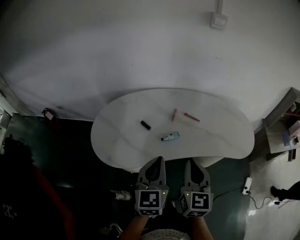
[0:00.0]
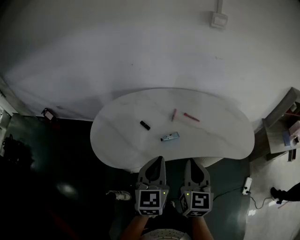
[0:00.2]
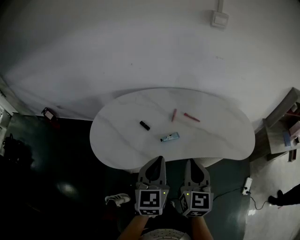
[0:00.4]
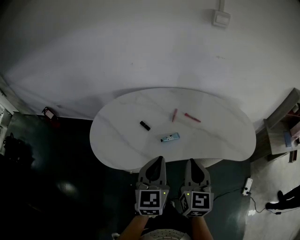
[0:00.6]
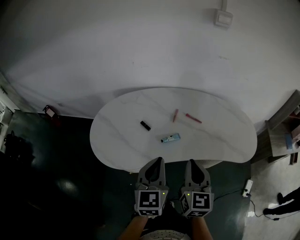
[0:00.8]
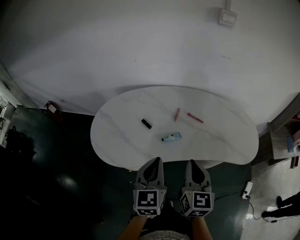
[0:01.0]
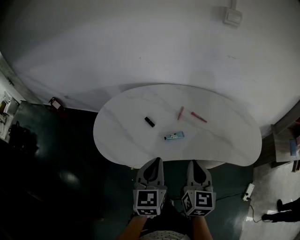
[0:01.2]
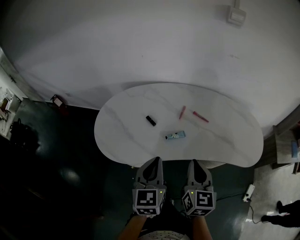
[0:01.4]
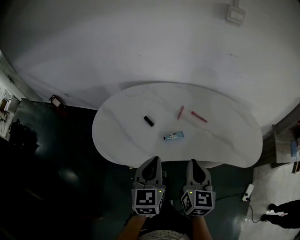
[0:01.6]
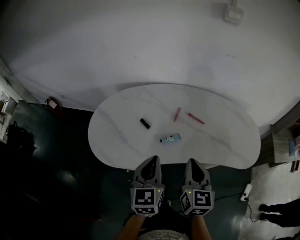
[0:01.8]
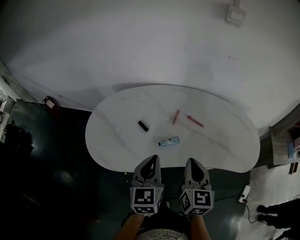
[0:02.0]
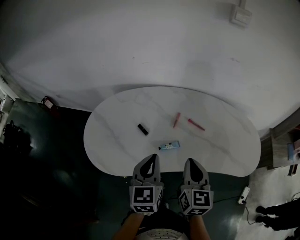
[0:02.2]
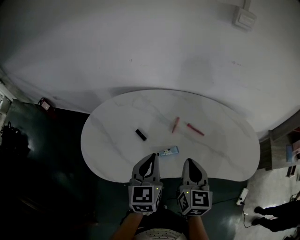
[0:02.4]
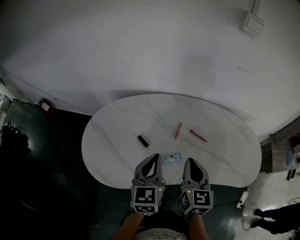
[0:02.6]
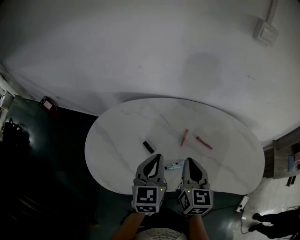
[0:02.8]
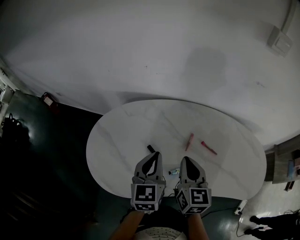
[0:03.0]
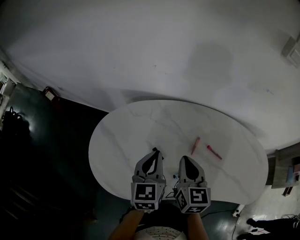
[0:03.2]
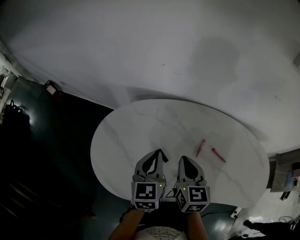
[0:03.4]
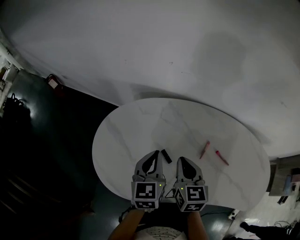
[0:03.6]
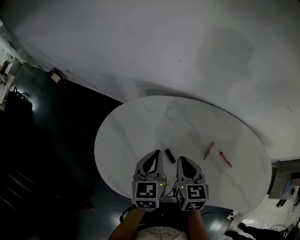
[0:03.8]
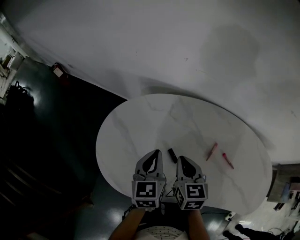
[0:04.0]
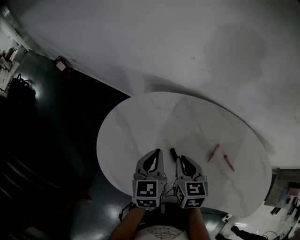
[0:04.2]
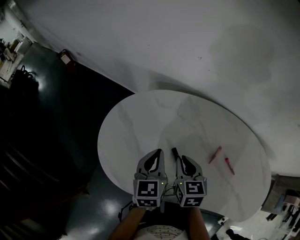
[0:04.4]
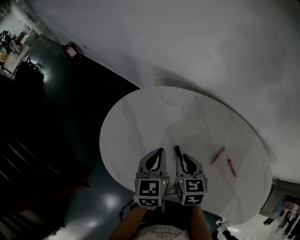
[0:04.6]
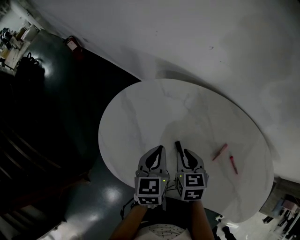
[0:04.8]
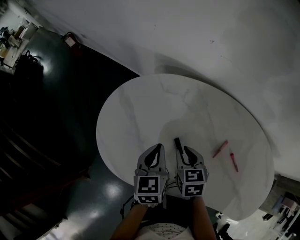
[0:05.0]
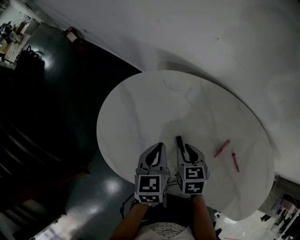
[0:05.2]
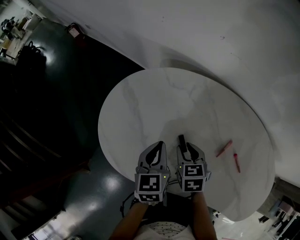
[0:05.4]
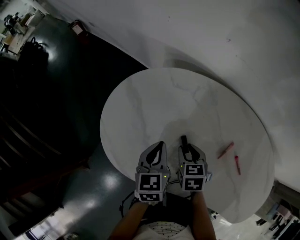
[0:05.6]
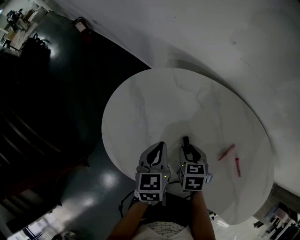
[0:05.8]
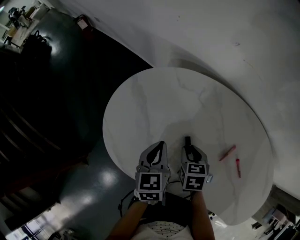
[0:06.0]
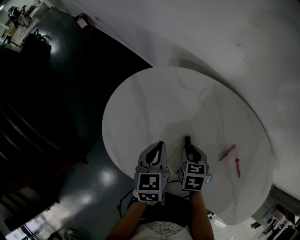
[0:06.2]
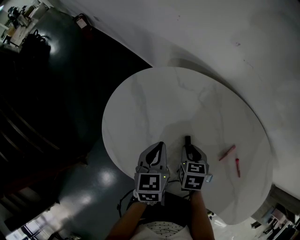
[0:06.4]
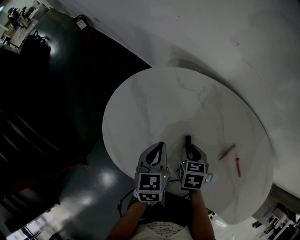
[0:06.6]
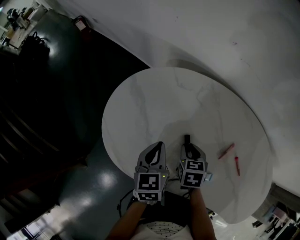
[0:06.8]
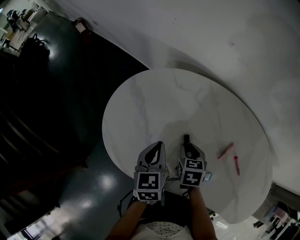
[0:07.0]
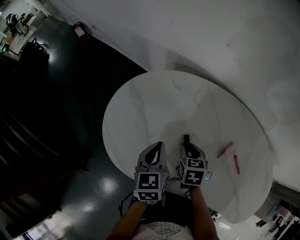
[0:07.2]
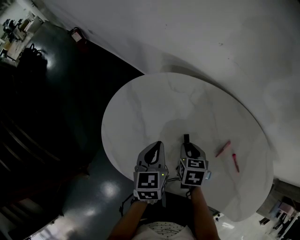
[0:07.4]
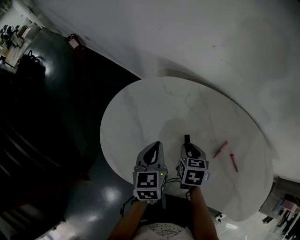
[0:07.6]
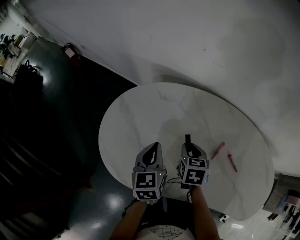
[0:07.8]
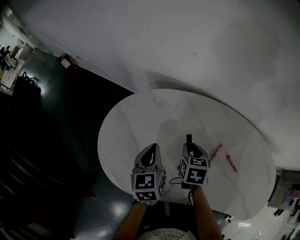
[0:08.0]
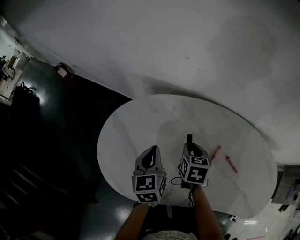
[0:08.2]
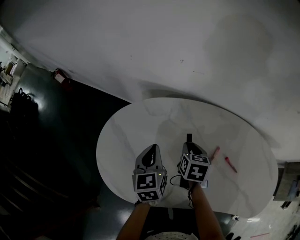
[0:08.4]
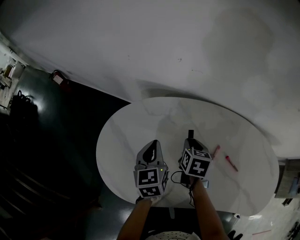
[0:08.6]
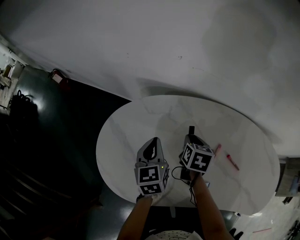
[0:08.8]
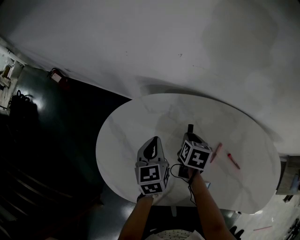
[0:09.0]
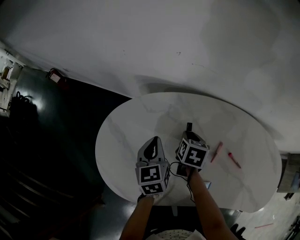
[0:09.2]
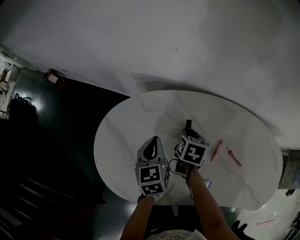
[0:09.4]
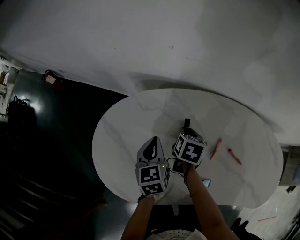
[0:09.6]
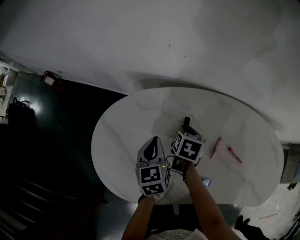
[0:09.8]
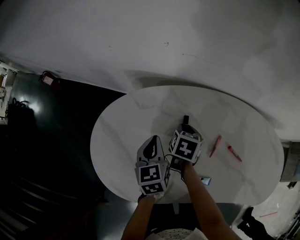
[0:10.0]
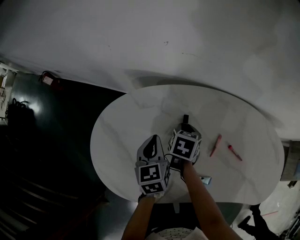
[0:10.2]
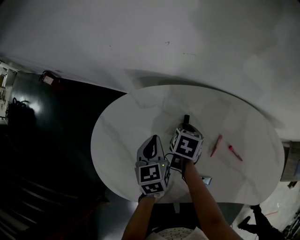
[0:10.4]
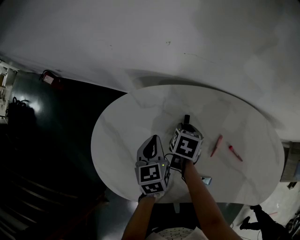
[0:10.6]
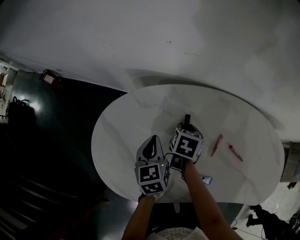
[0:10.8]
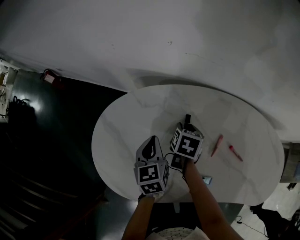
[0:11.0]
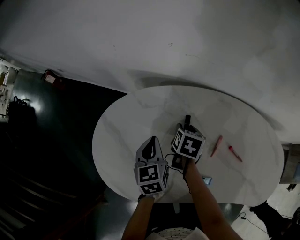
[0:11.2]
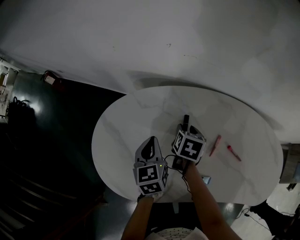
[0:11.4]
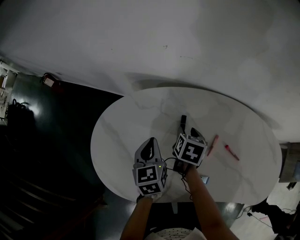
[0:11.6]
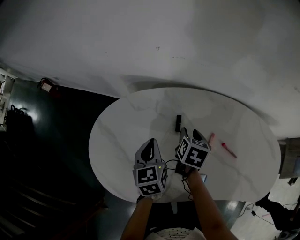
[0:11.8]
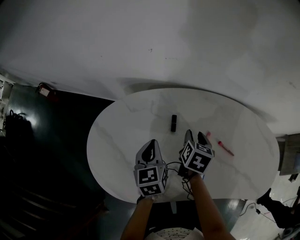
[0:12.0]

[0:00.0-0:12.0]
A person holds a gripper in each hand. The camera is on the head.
0:00.0 to 0:01.6: The right gripper ends up about 5 cm from where it was, while the left gripper moves roughly 5 cm.
0:01.6 to 0:03.0: The right gripper shifts about 25 cm forward and to the left. The left gripper moves forward, some 20 cm.
0:03.0 to 0:04.4: Both grippers travel together to the left, downward and forward, approximately 15 cm. The left gripper rotates some 20 degrees. Meanwhile the right gripper changes its angle by roughly 30 degrees.
0:04.4 to 0:06.0: The left gripper is displaced downward by approximately 5 cm; the right gripper travels downward by approximately 10 cm, and changes its angle by some 20 degrees.
0:06.0 to 0:07.6: The grippers make only small movements.
0:07.6 to 0:09.0: The right gripper goes some 10 cm forward and to the right, and turns by approximately 20 degrees. Meanwhile the left gripper travels forward by approximately 10 cm.
0:09.0 to 0:10.4: The grippers make only small movements.
0:10.4 to 0:12.0: The right gripper moves to the right and upward, roughly 10 cm.

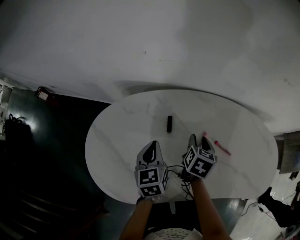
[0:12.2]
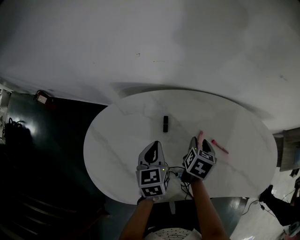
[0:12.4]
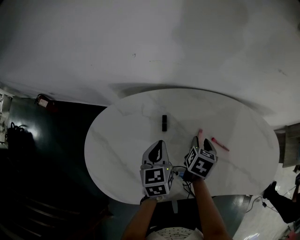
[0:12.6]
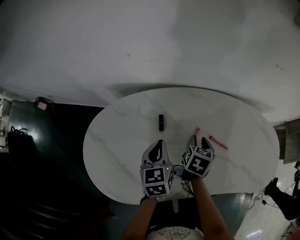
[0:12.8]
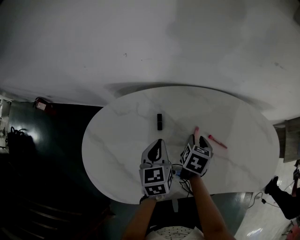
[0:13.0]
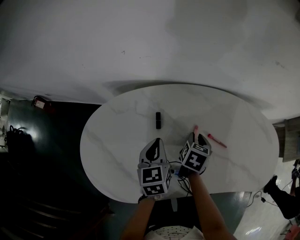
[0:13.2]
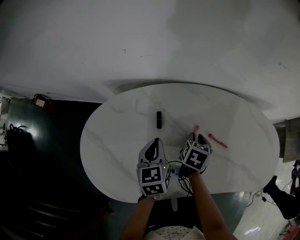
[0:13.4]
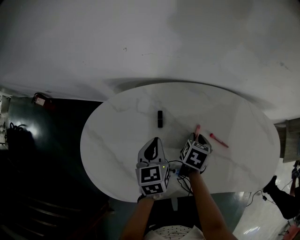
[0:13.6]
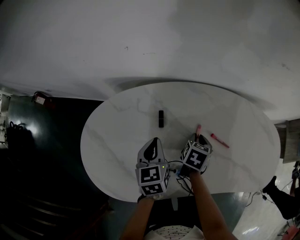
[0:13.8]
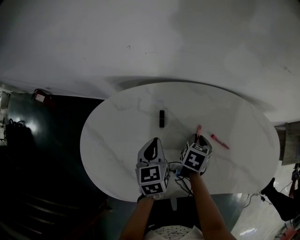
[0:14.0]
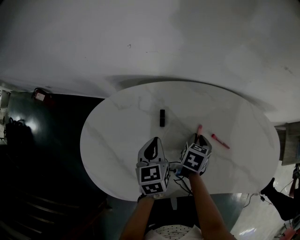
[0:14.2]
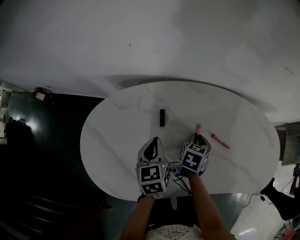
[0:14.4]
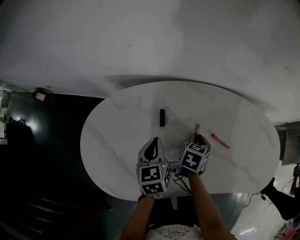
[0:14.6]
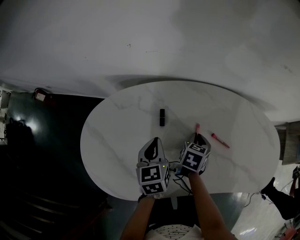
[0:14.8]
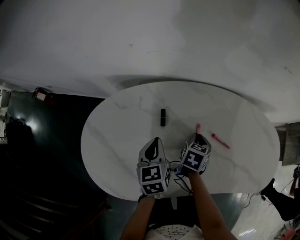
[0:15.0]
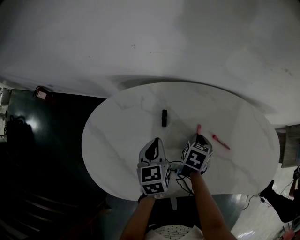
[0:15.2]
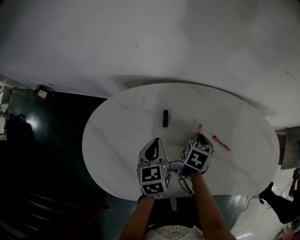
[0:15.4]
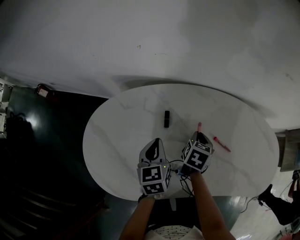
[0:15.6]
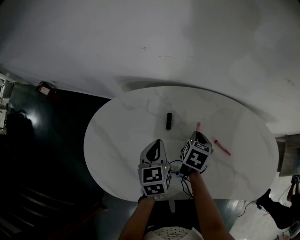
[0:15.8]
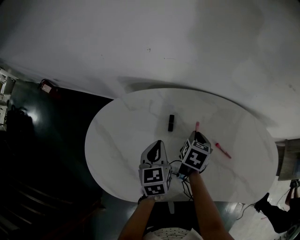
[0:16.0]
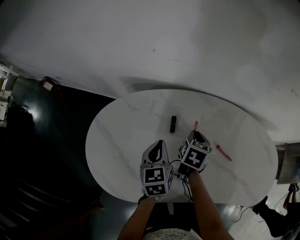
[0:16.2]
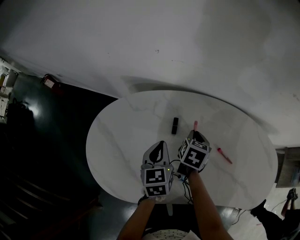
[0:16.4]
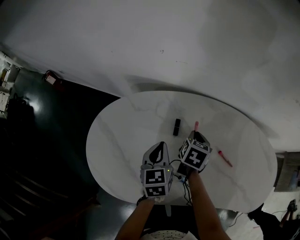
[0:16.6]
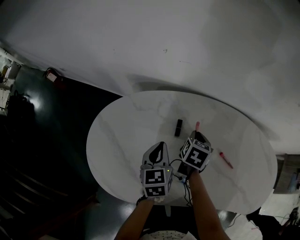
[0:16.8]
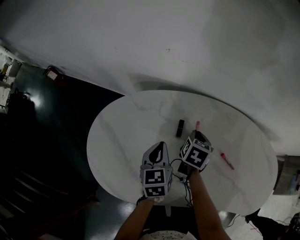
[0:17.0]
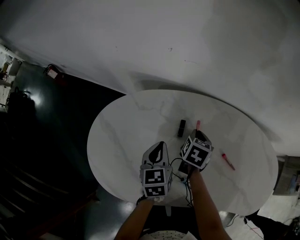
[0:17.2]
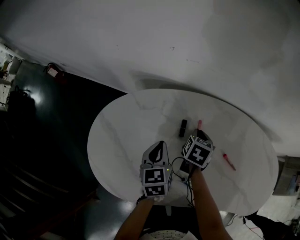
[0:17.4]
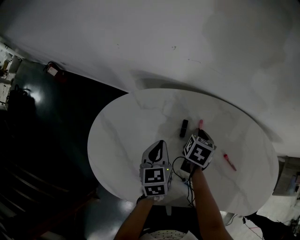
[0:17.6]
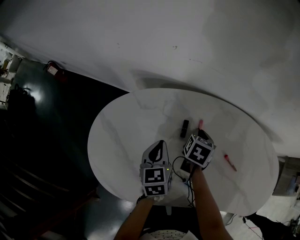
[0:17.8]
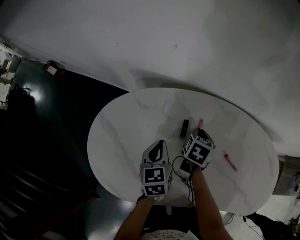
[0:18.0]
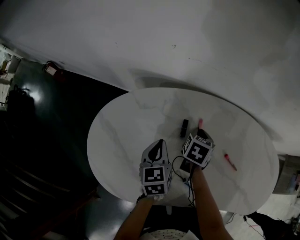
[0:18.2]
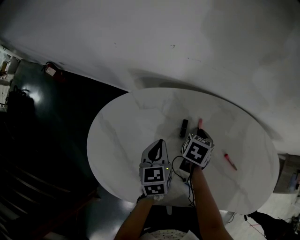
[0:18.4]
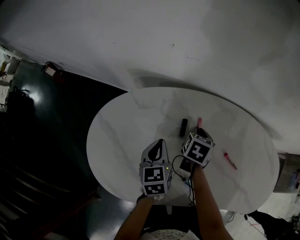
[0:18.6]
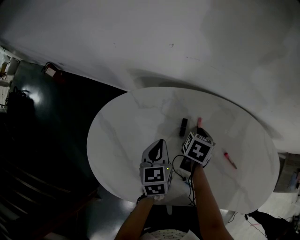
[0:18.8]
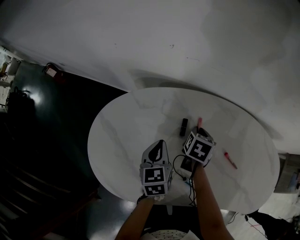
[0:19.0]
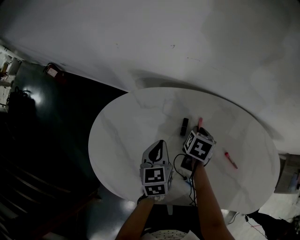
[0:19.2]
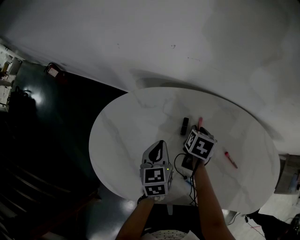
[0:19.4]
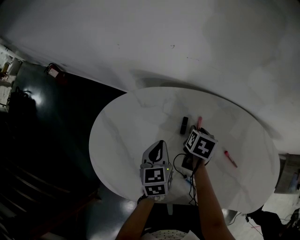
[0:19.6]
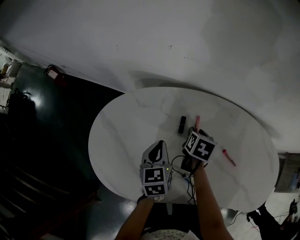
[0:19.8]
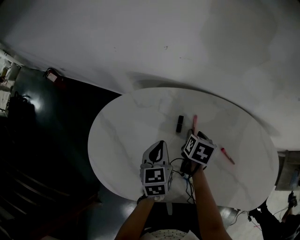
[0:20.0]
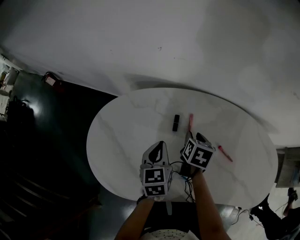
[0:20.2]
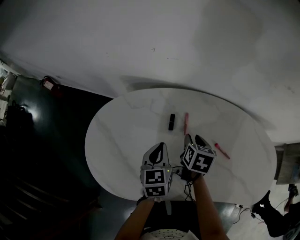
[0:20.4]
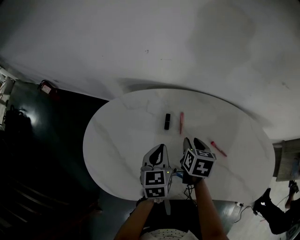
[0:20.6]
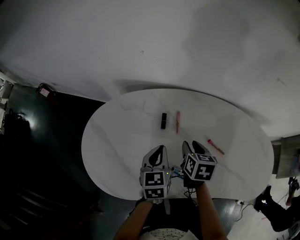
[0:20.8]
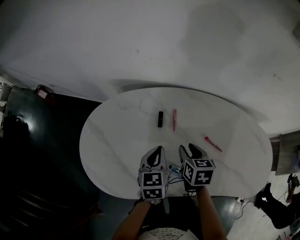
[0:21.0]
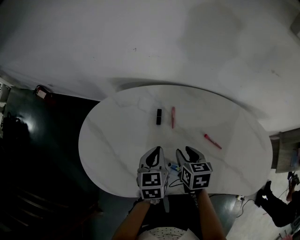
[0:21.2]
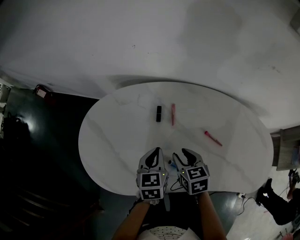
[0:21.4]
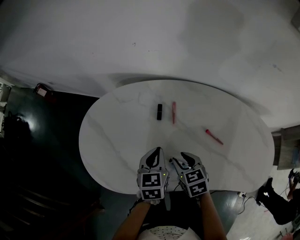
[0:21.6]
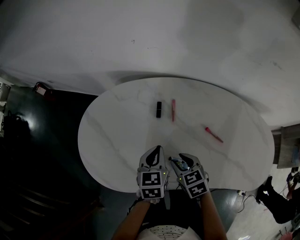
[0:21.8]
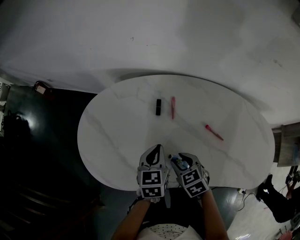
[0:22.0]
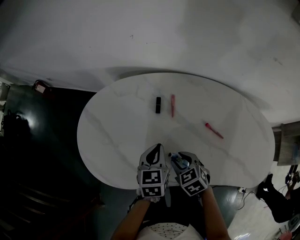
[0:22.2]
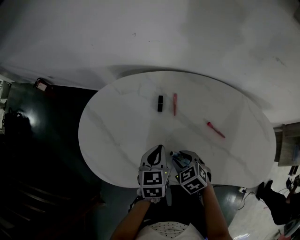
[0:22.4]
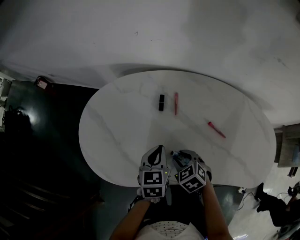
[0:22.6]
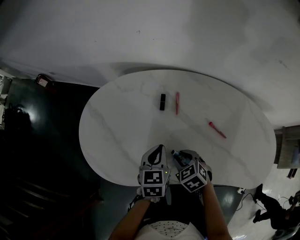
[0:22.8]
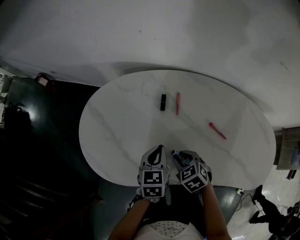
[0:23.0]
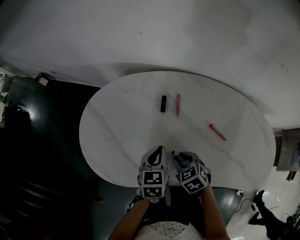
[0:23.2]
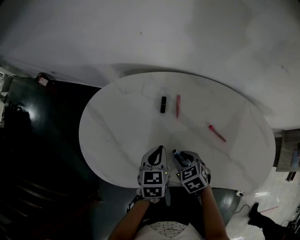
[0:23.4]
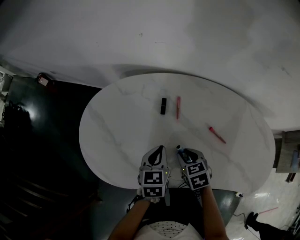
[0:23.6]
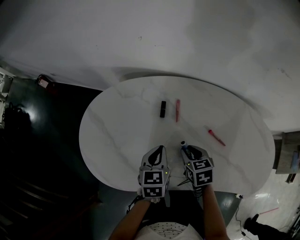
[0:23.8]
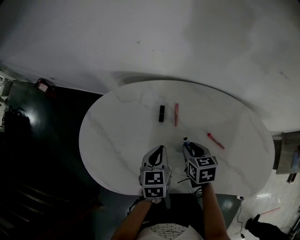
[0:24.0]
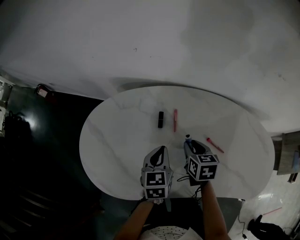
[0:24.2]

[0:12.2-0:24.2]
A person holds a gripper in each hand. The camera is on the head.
0:12.2 to 0:13.8: The right gripper is displaced downward by about 5 cm, and closes.
0:13.8 to 0:15.2: The grippers move only a little.
0:15.2 to 0:16.6: The right gripper moves to the left and forward, some 10 cm.
0:16.6 to 0:18.2: There are only small adjustments of the grippers.
0:18.2 to 0:19.8: The right gripper opens up.
0:19.8 to 0:21.2: The left gripper heads to the right and backward, covering some 10 cm, while the right gripper shifts some 15 cm backward, and swivels roughly 20 degrees.
0:21.2 to 0:22.6: The left gripper moves approximately 5 cm. Meanwhile the right gripper goes about 10 cm backward, downward and to the left, and swivels roughly 40 degrees.
0:22.6 to 0:24.2: The left gripper travels forward by approximately 5 cm. The right gripper goes about 15 cm forward and to the right, and turns by some 40 degrees.
